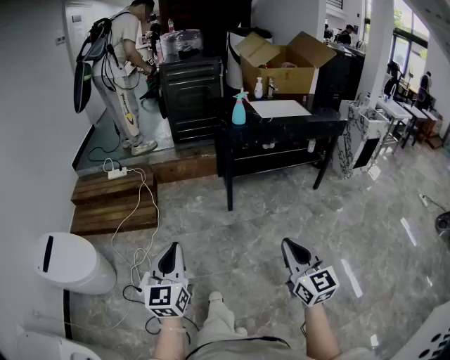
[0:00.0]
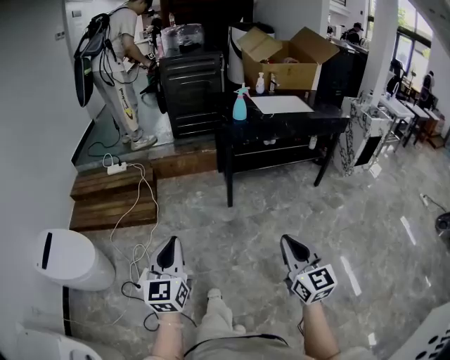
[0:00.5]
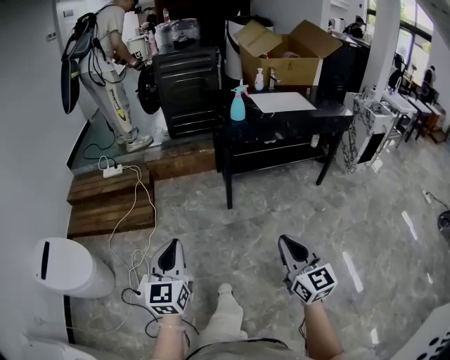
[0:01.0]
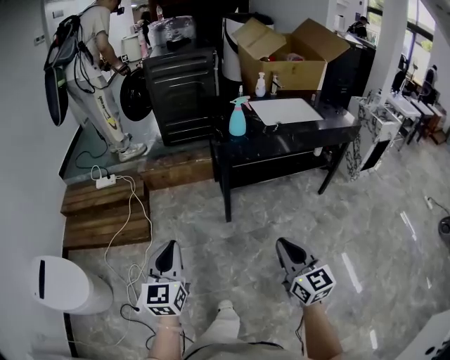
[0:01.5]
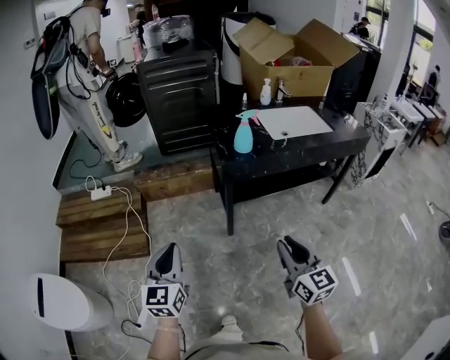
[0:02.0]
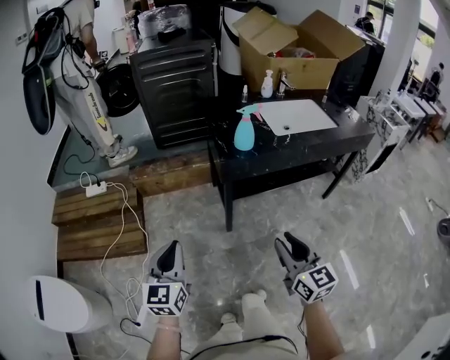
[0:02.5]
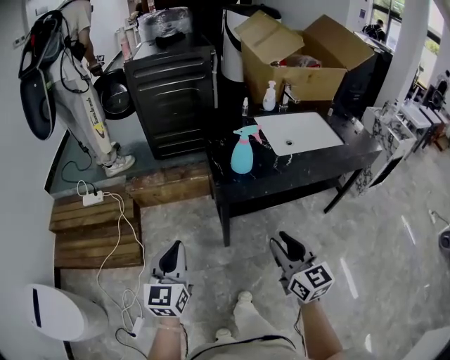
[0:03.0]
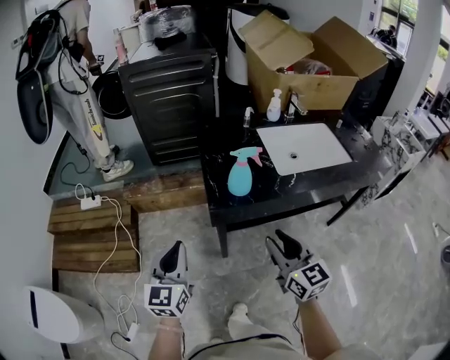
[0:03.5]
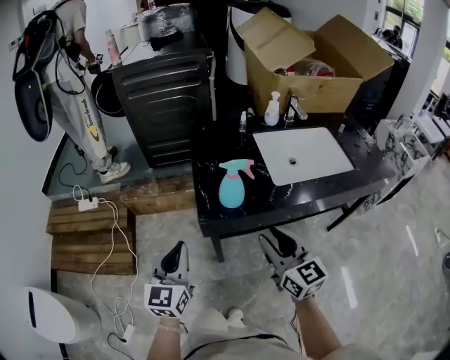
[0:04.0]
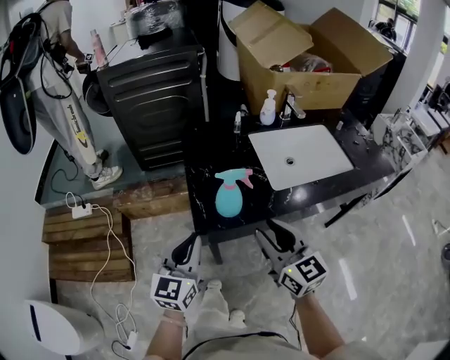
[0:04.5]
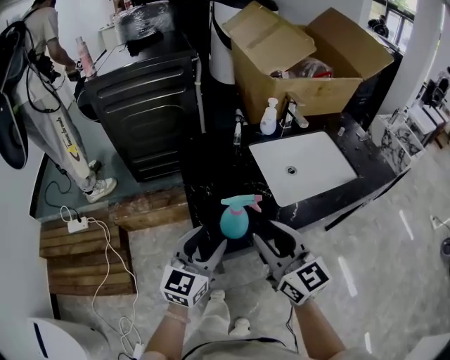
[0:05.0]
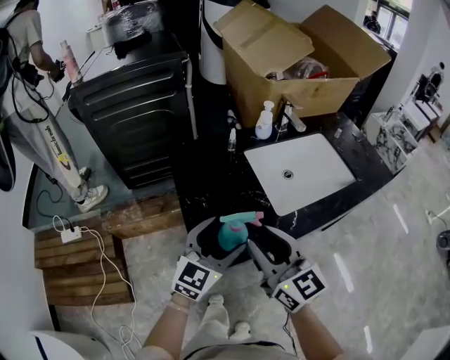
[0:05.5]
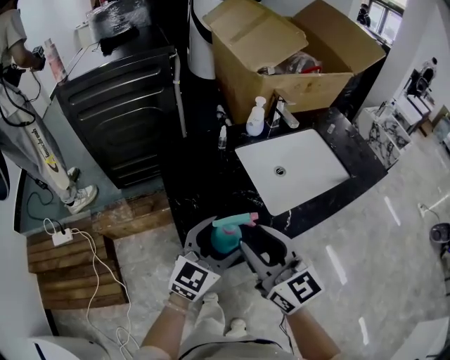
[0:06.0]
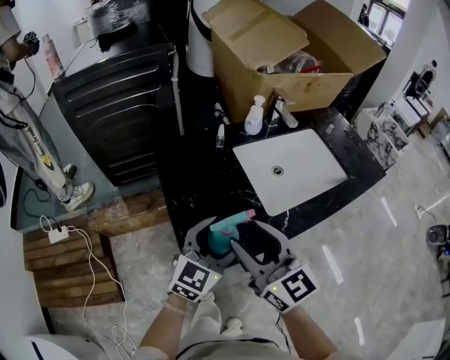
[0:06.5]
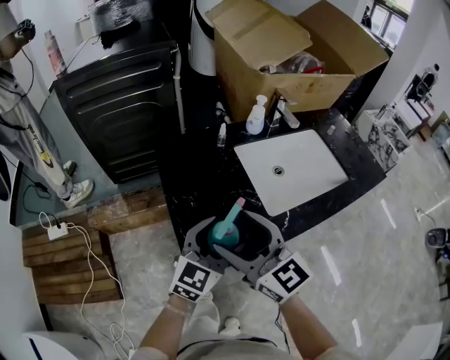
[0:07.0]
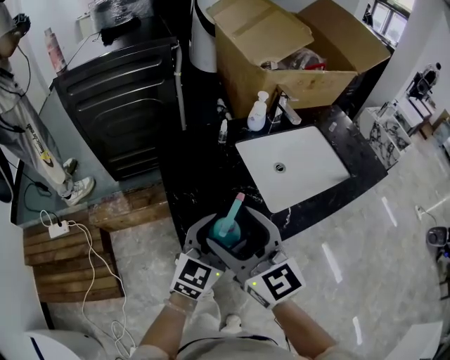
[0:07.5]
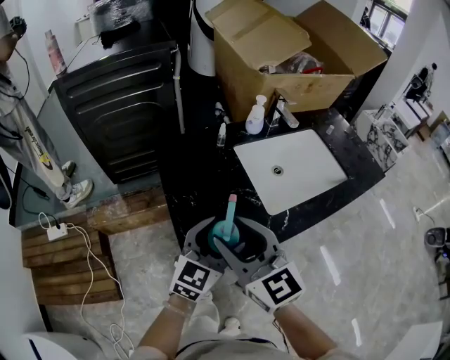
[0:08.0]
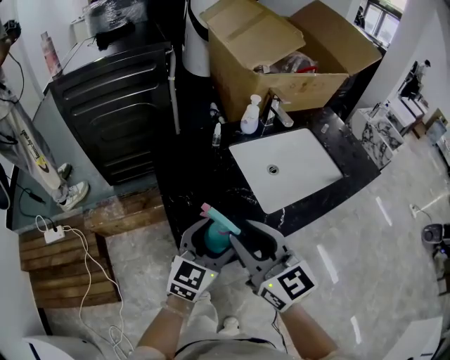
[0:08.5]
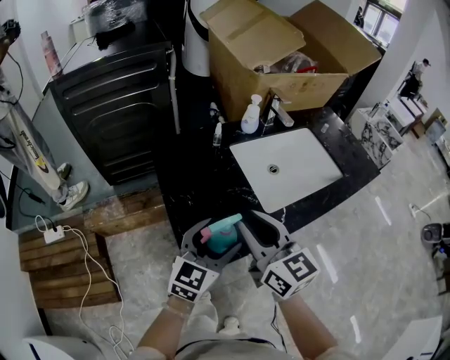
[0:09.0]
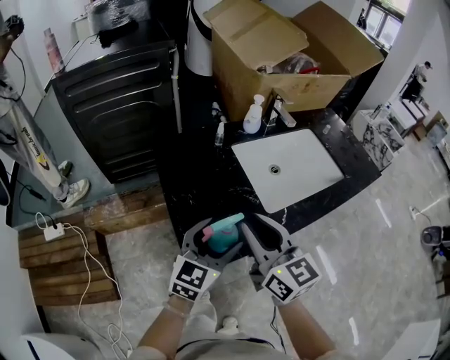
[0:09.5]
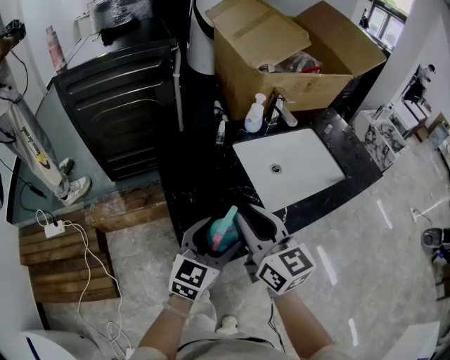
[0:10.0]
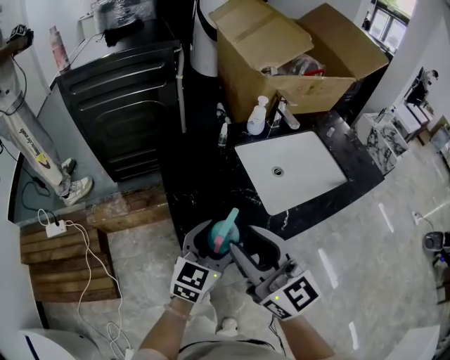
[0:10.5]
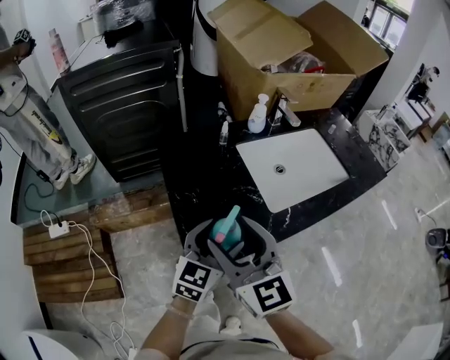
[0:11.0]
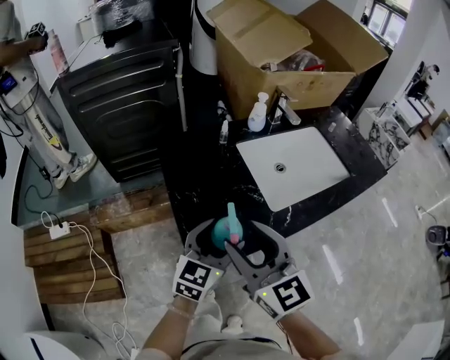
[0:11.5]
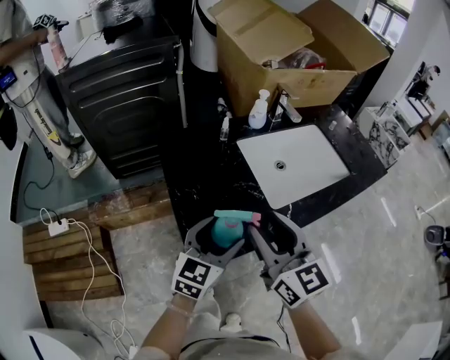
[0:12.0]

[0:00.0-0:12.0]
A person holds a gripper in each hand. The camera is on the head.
0:00.0 to 0:02.0: The grippers both shift forward by roughly 35 cm.
0:02.0 to 0:04.0: The left gripper heads forward and to the right, covering roughly 30 cm. Meanwhile the right gripper heads forward, covering some 30 cm.
0:04.0 to 0:06.0: The left gripper goes roughly 25 cm forward and to the right, swivels about 40 degrees, and opens up; the right gripper moves forward and upward, roughly 15 cm.
0:06.0 to 0:08.0: The right gripper shifts approximately 5 cm to the left, and opens and closes again.
0:08.0 to 0:10.0: The right gripper shifts by roughly 5 cm.

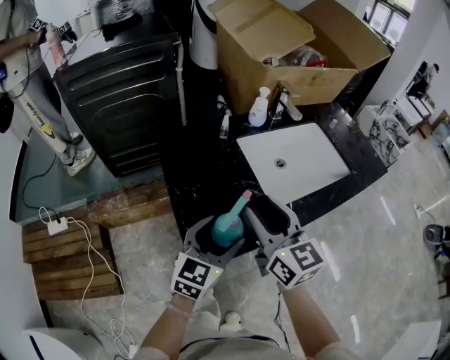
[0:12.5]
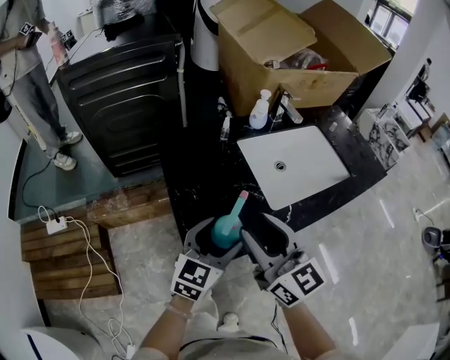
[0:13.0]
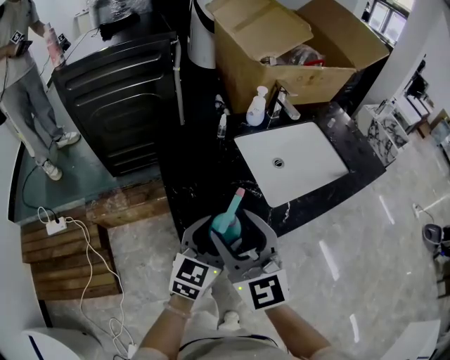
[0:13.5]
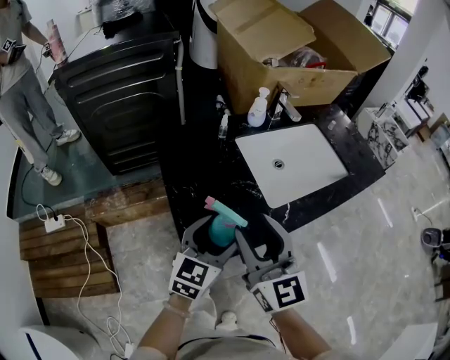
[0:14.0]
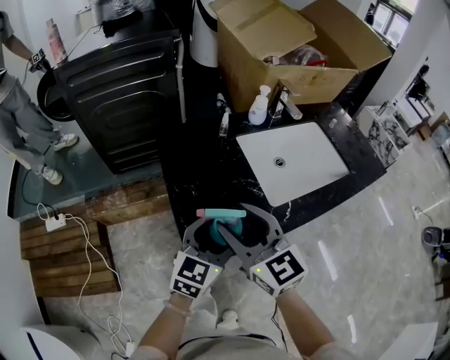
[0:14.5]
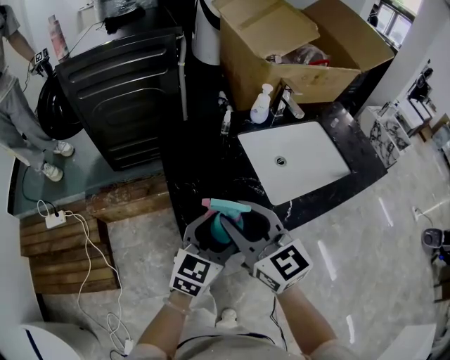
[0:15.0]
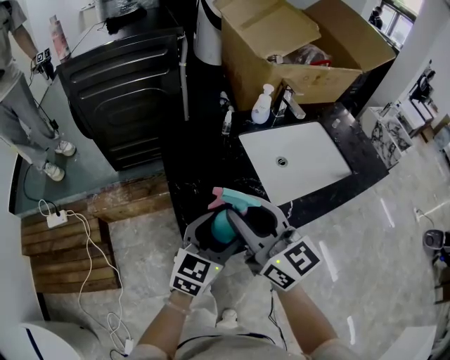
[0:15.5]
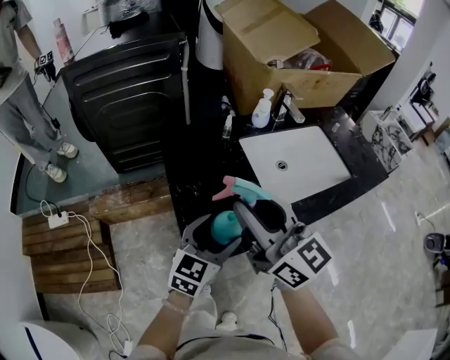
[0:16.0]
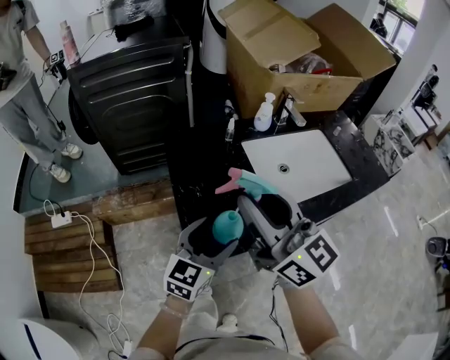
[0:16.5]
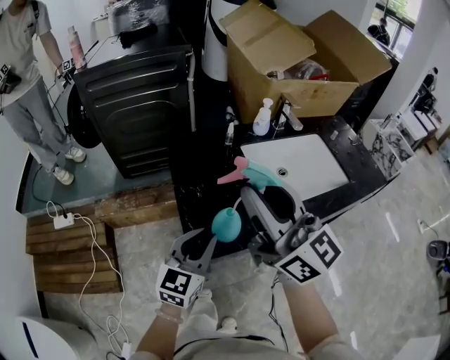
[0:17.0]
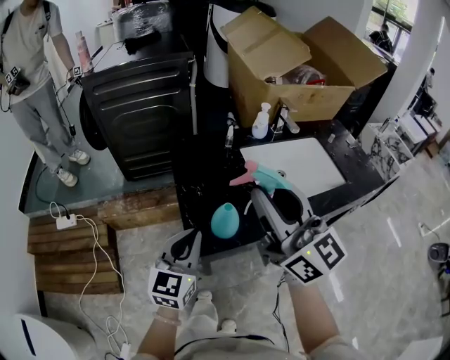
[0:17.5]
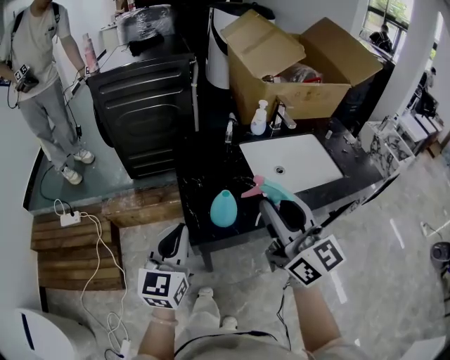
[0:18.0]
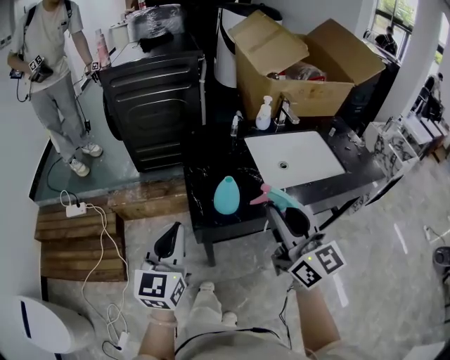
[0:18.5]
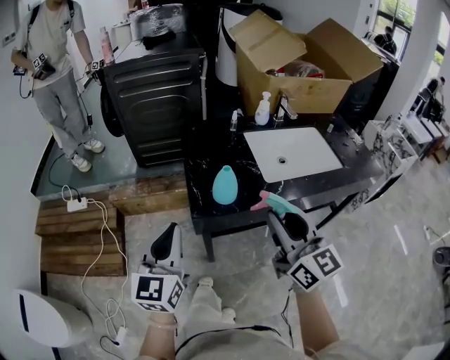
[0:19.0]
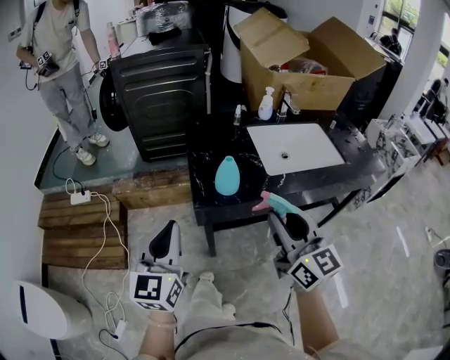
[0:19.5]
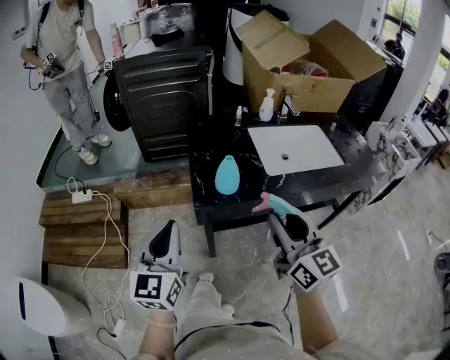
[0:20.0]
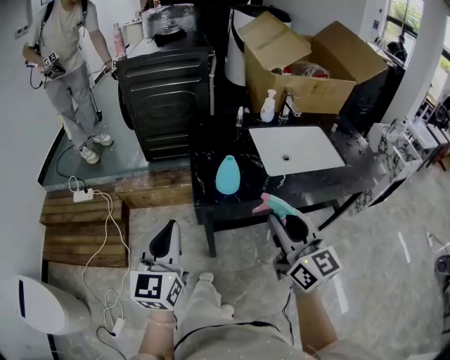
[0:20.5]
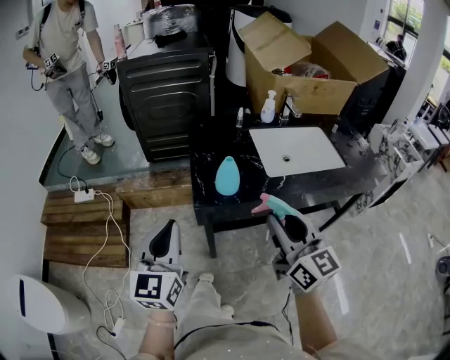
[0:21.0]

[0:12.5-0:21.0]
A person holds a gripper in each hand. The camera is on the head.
0:12.5 to 0:14.5: The right gripper moves left and right over approximately 5 cm, changing direction 2 times.
0:14.5 to 0:16.5: The right gripper heads upward, covering about 10 cm, and changes its angle by approximately 20 degrees.
0:16.5 to 0:19.0: The left gripper travels backward, to the left and upward by some 20 cm, swivels roughly 30 degrees, and closes, while the right gripper goes approximately 20 cm backward and to the right.
0:19.0 to 0:21.0: The grippers move only a little.

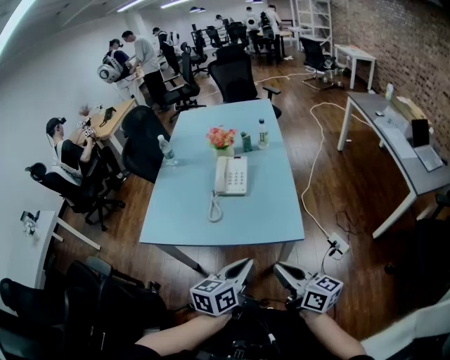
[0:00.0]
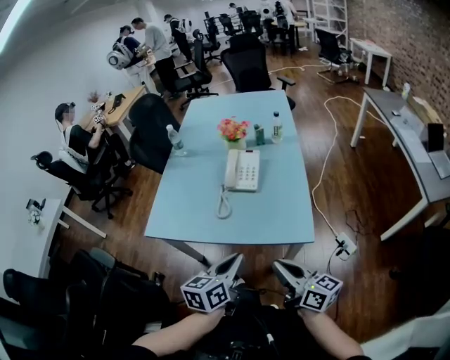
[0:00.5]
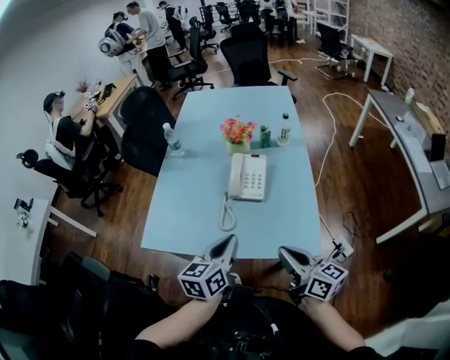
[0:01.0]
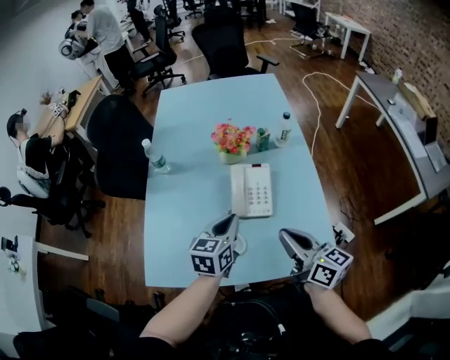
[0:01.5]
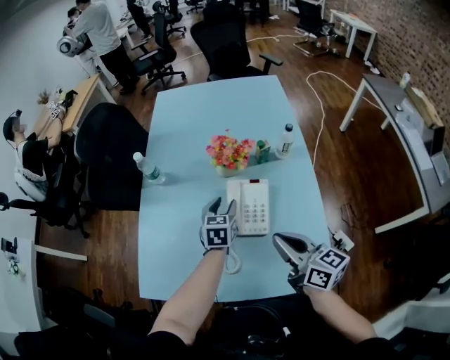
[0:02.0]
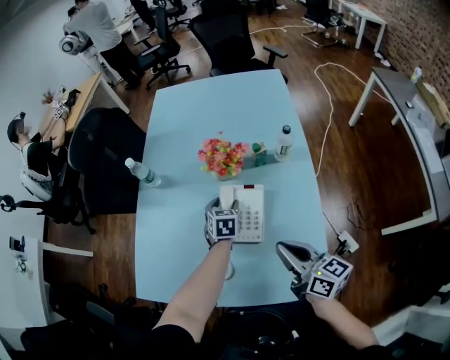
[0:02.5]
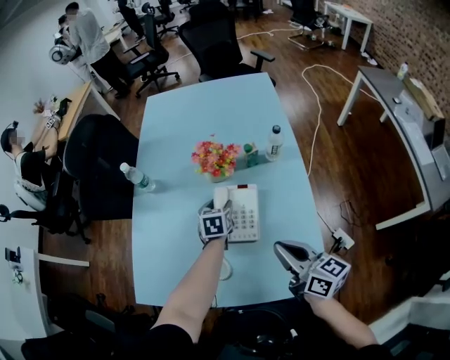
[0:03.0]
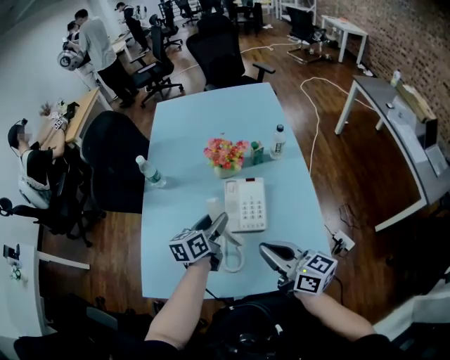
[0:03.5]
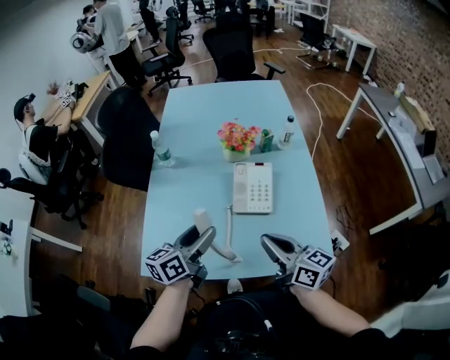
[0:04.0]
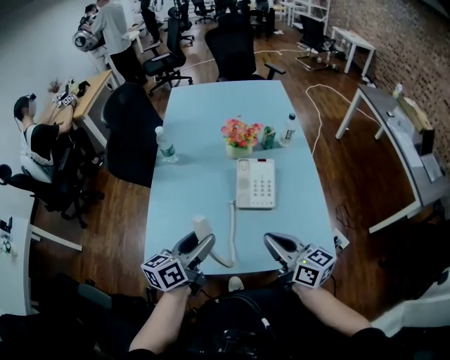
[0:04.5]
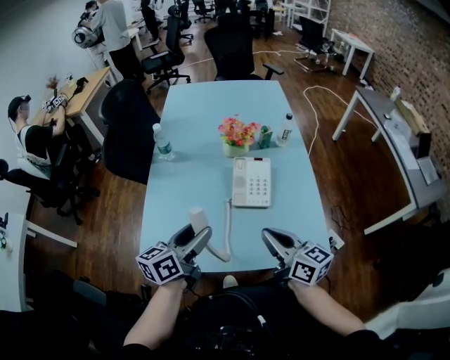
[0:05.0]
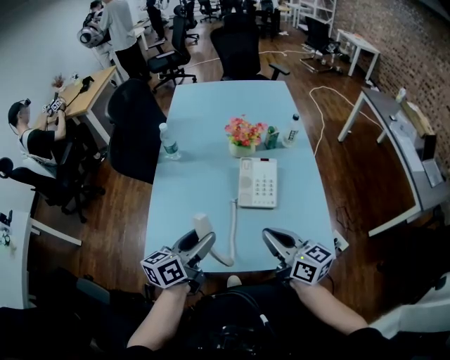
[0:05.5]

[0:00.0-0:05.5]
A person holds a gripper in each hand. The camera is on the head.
0:00.0 to 0:02.0: Both grippers travel together forward, about 40 cm. The left gripper rotates approximately 30 degrees, and opens up.
0:02.0 to 0:03.5: The left gripper heads backward, covering roughly 5 cm, and changes its angle by some 30 degrees, while the right gripper moves about 5 cm.
0:03.5 to 0:05.5: The right gripper moves roughly 5 cm. Meanwhile the left gripper goes approximately 20 cm backward and to the left.

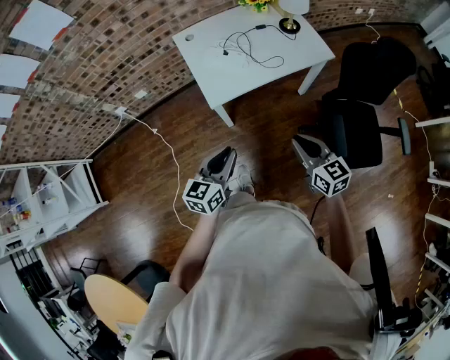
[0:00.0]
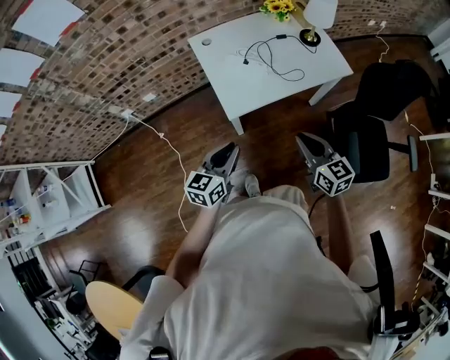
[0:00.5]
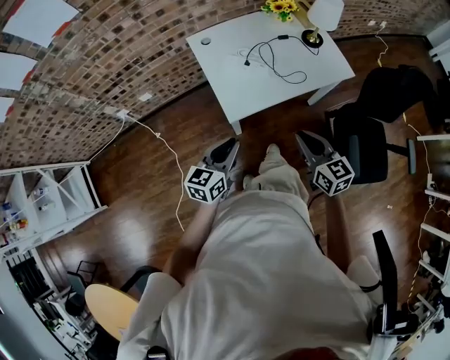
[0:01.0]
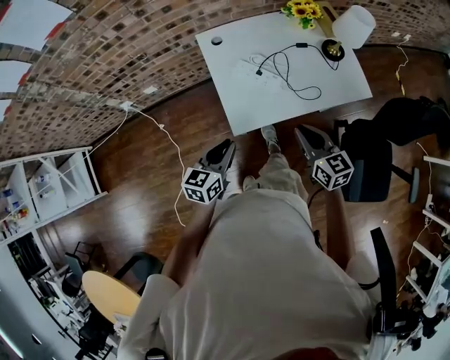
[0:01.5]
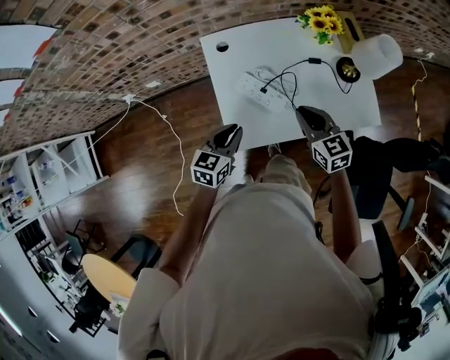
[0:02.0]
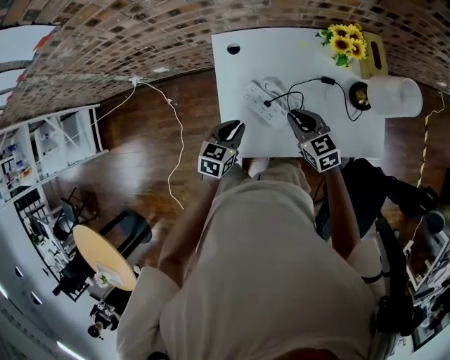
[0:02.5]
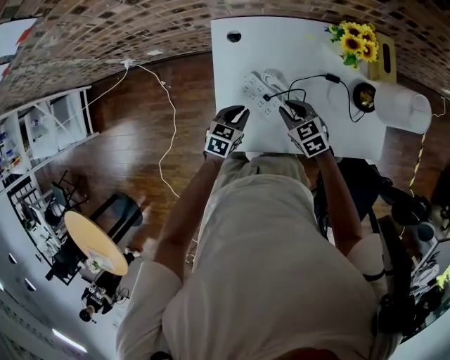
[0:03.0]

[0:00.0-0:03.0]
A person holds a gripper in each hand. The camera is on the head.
0:00.0 to 0:01.5: The right gripper heads forward, covering some 25 cm, while the left gripper heads forward and to the left, covering approximately 25 cm.
0:01.5 to 0:03.0: The right gripper shifts about 30 cm forward and downward, and rotates roughly 40 degrees. The left gripper shifts roughly 30 cm forward, downward and to the right, and swivels some 20 degrees.
